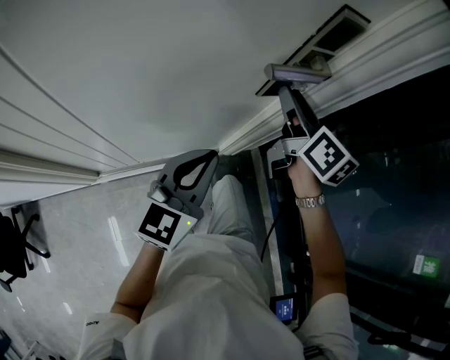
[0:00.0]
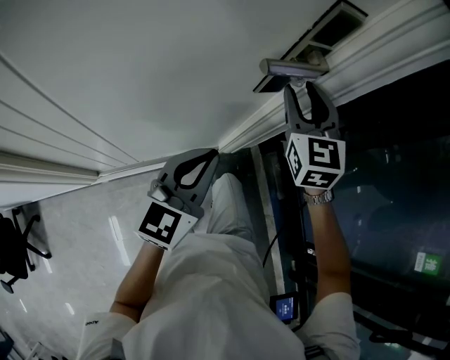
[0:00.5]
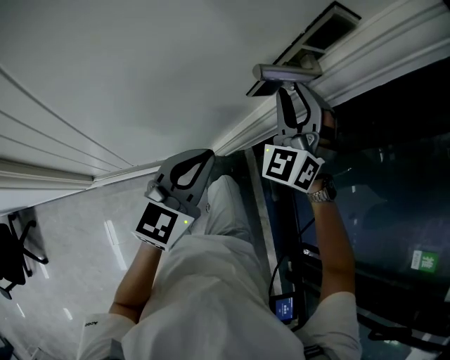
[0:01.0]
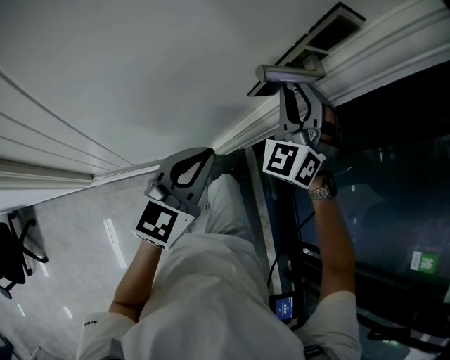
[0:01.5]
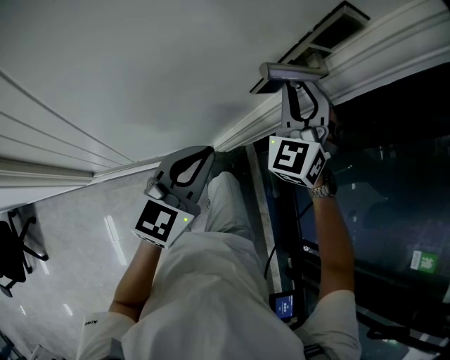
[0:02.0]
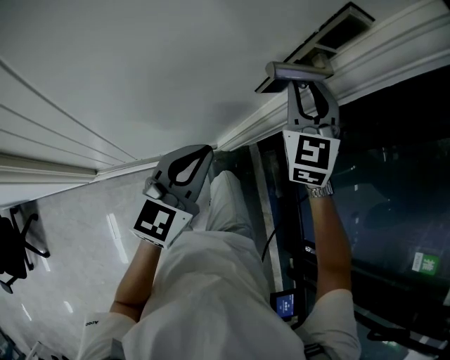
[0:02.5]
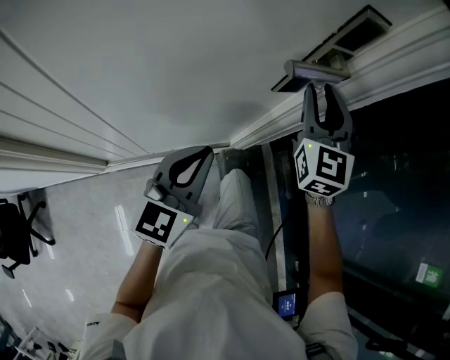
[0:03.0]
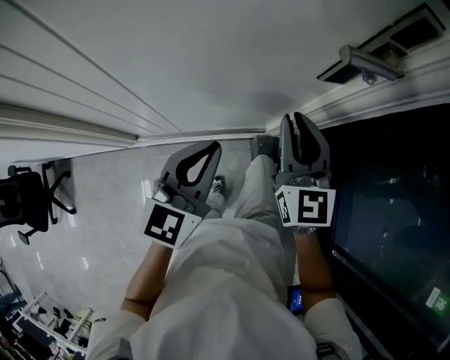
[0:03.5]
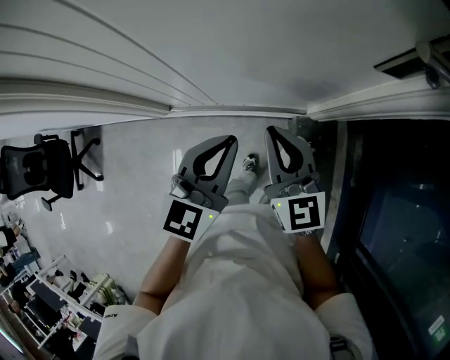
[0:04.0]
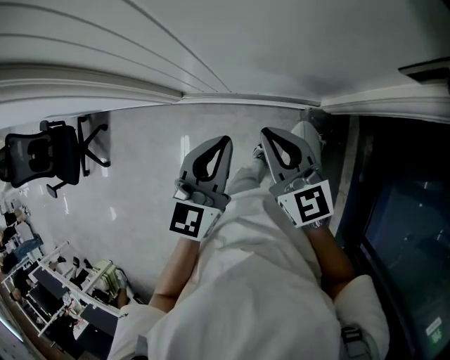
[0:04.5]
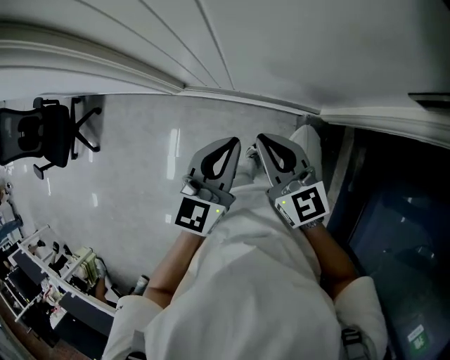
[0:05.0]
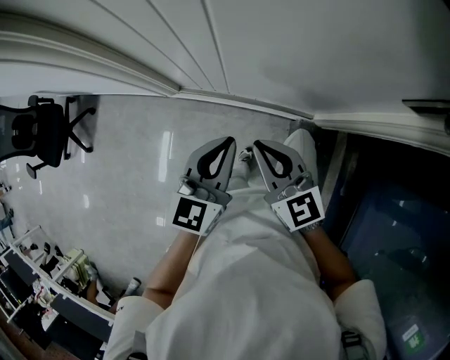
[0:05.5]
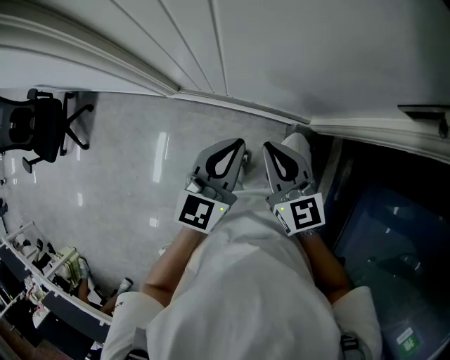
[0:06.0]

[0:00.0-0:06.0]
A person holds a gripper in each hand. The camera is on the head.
0:00.0 to 0:02.0: The right gripper rolls counterclockwise, seen from behind, by about 90 degrees.
0:02.0 to 0:04.0: The left gripper changes place by approximately 15 cm, and swivels roughly 20 degrees; the right gripper shifts by approximately 30 cm, rolls clockwise, seen from behind, by roughly 60 degrees, and closes.
0:04.0 to 0:06.0: Both grippers move to the left, roughly 10 cm. The right gripper rotates approximately 20 degrees.

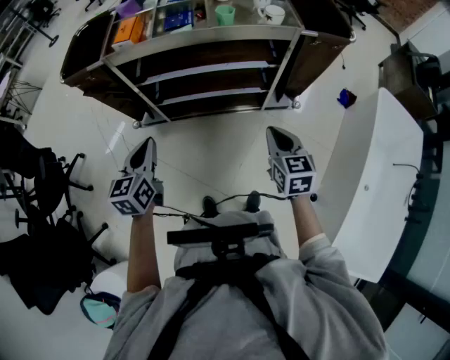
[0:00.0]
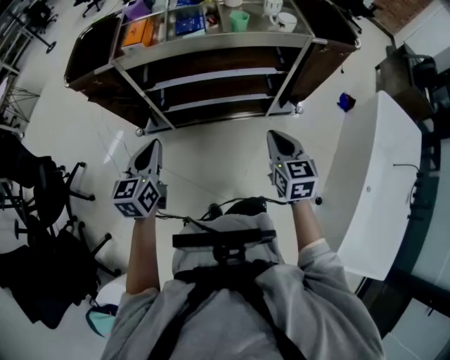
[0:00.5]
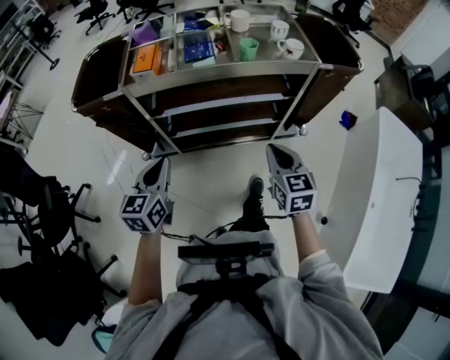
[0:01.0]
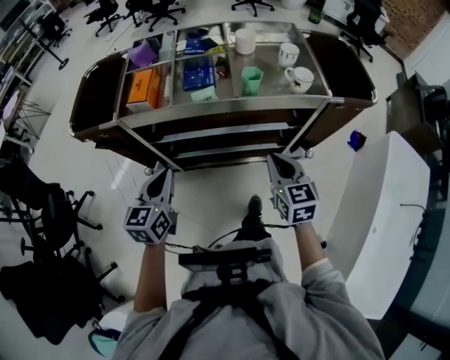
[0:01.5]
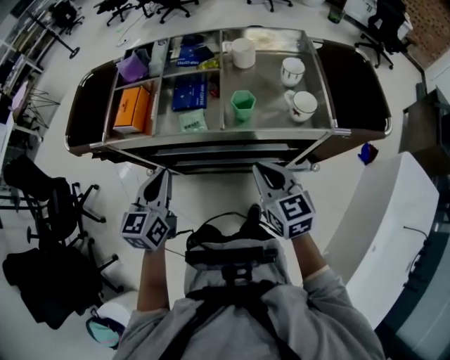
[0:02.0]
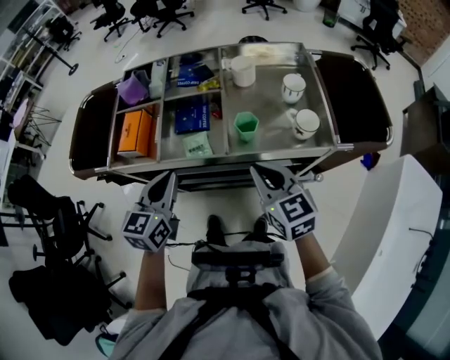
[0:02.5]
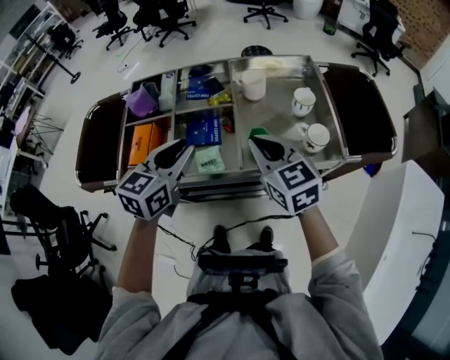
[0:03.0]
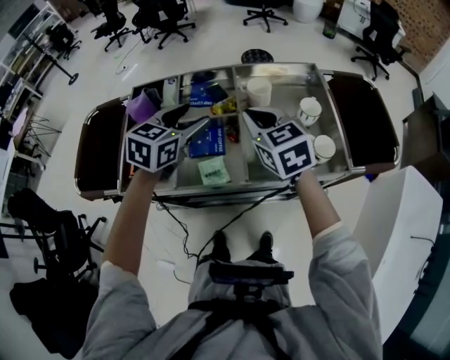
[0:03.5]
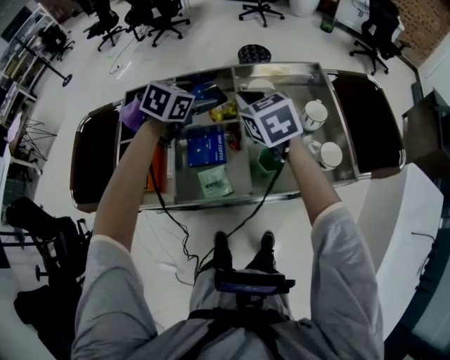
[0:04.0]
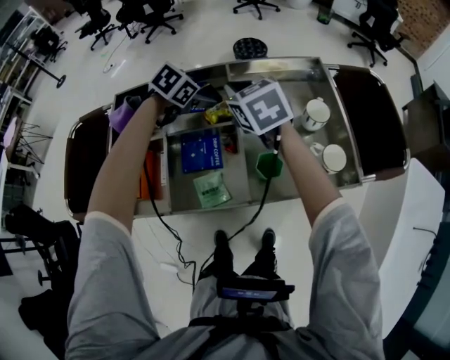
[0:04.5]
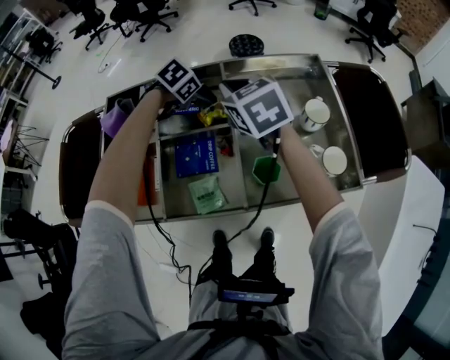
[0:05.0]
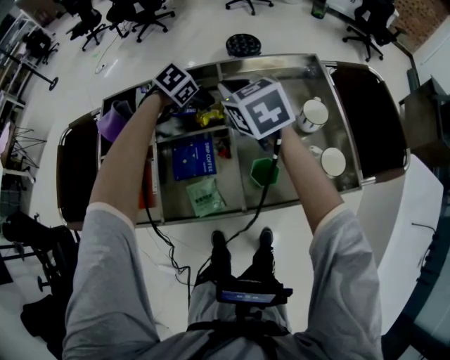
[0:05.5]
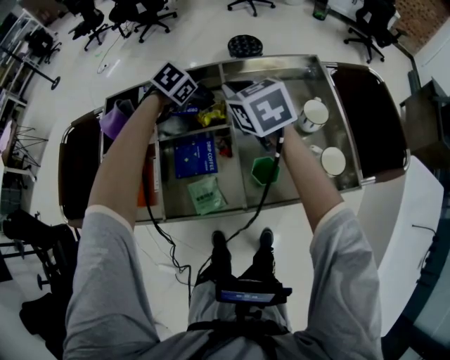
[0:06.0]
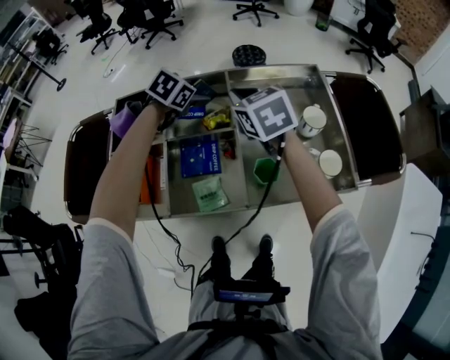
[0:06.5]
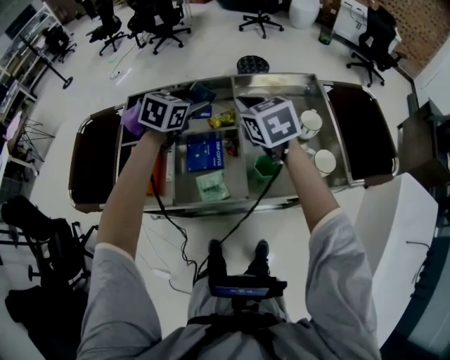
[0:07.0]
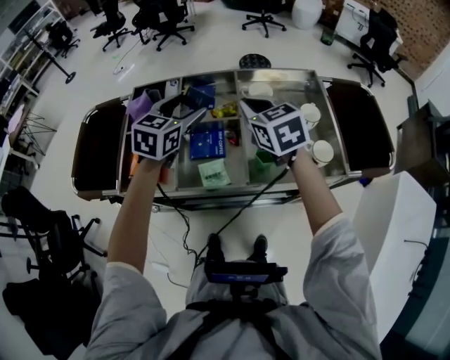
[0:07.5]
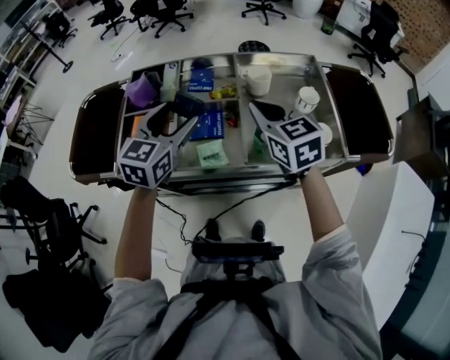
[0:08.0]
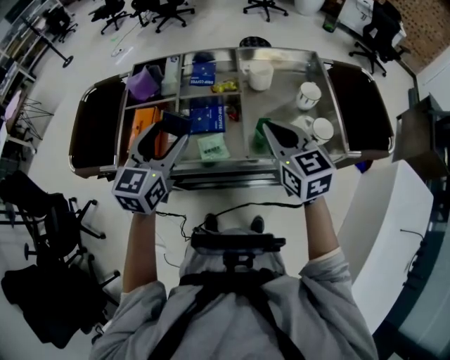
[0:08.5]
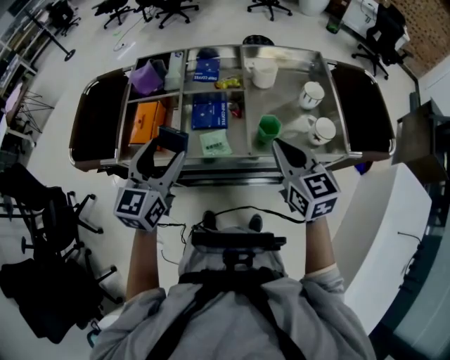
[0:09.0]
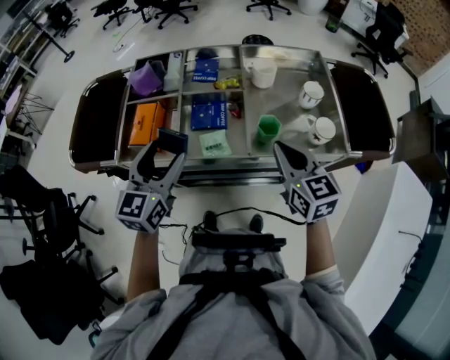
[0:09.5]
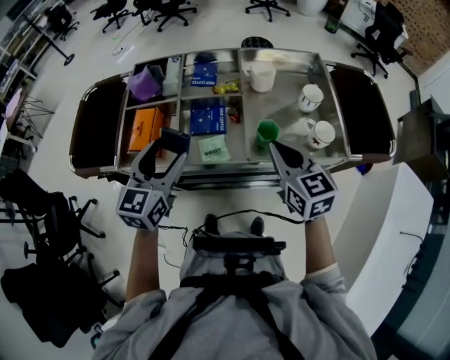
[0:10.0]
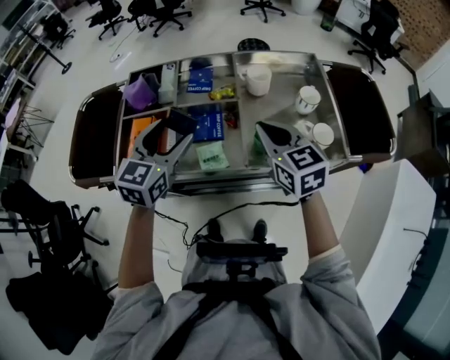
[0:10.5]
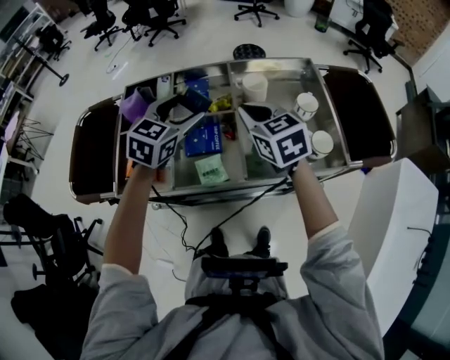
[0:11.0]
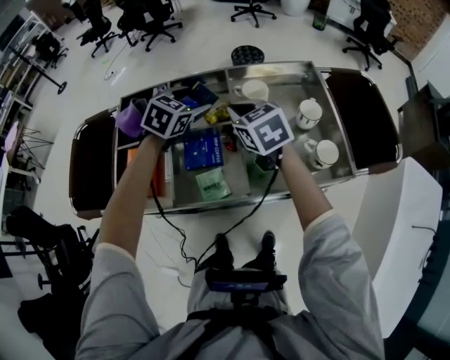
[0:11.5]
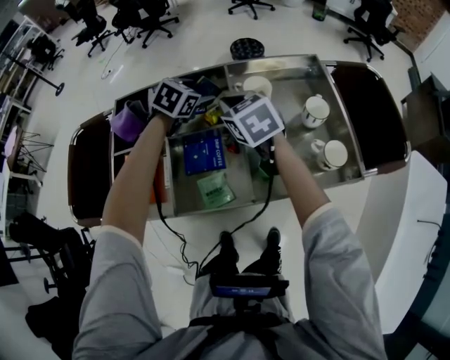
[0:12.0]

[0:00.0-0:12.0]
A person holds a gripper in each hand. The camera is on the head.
0:00.0 to 0:02.0: Both grippers move forward, about 30 cm.
0:02.0 to 0:04.0: The grippers both shift forward by roughly 35 cm. The left gripper turns by approximately 40 degrees, and opens up.
0:04.0 to 0:06.0: The right gripper is displaced forward by roughly 5 cm. The left gripper heads downward and forward, covering approximately 15 cm, and rotates about 20 degrees.
0:06.0 to 0:08.0: The right gripper is displaced backward by about 20 cm. The left gripper travels backward and upward by roughly 30 cm, and tilts its fingers roughly 50 degrees upward.
0:08.0 to 0:10.0: The right gripper heads backward and downward, covering about 10 cm; the left gripper shifts some 10 cm backward.
0:10.0 to 0:12.0: Both grippers move forward, some 30 cm. The left gripper tilts its fingers some 30 degrees downward.

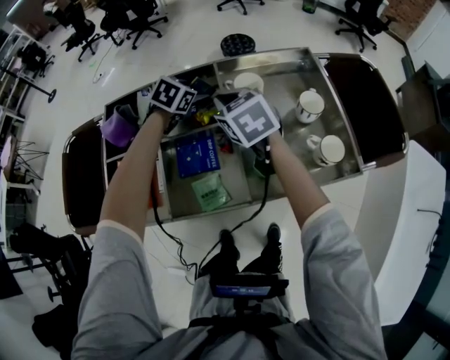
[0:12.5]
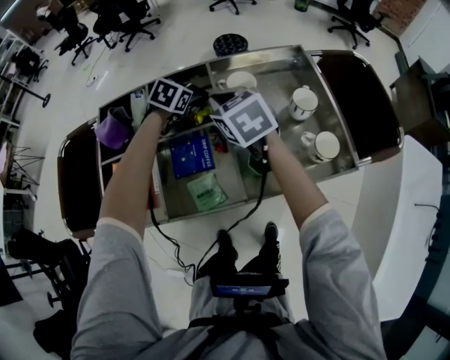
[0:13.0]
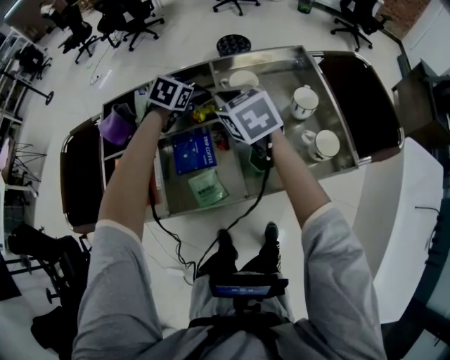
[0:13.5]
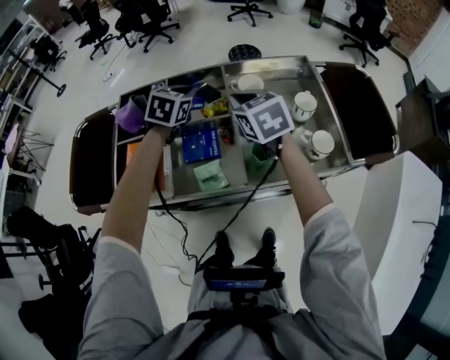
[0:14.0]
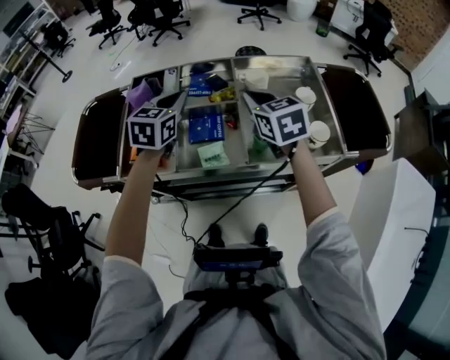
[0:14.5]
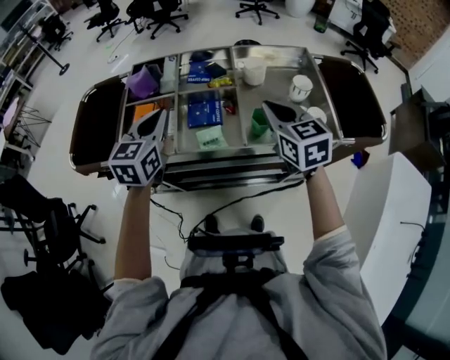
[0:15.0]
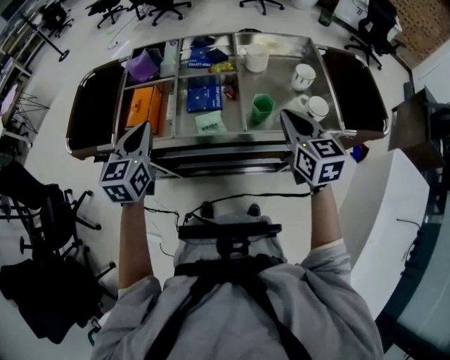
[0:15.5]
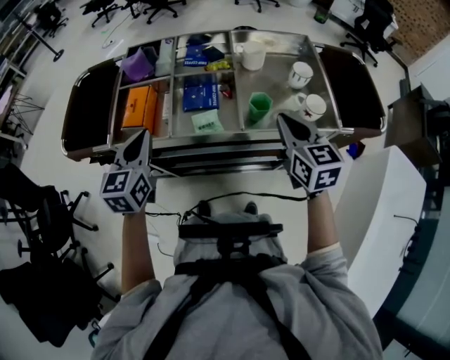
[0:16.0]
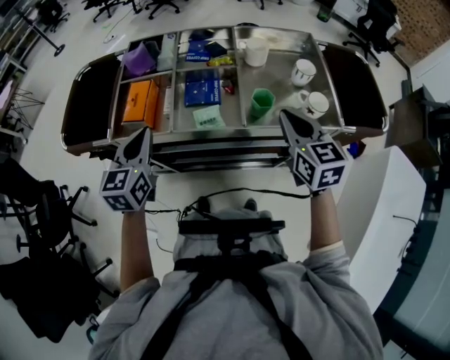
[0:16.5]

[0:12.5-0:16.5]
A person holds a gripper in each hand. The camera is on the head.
0:12.5 to 0:14.5: The left gripper heads backward and upward, covering about 25 cm, swivels some 30 degrees, and closes, while the right gripper goes roughly 15 cm backward and upward.
0:14.5 to 0:16.5: The left gripper travels backward and to the left by approximately 20 cm; the right gripper travels backward by approximately 15 cm.

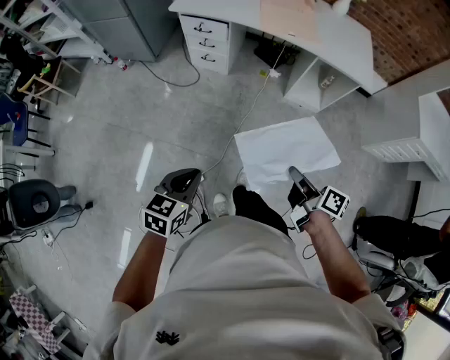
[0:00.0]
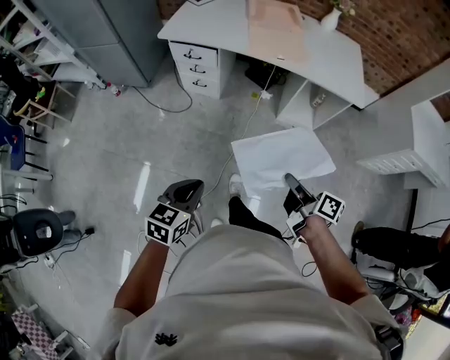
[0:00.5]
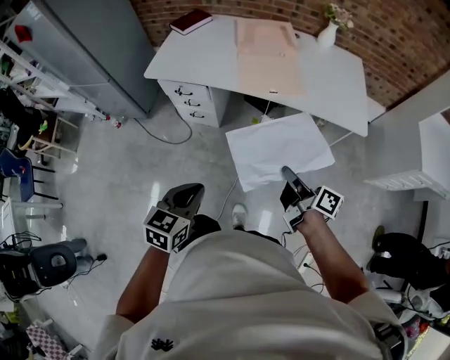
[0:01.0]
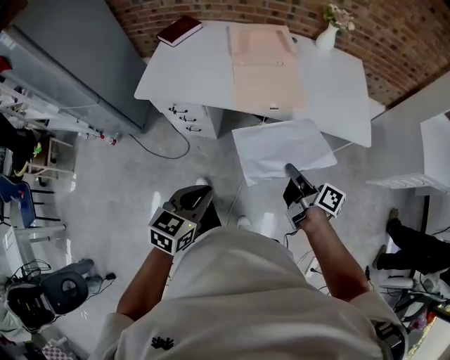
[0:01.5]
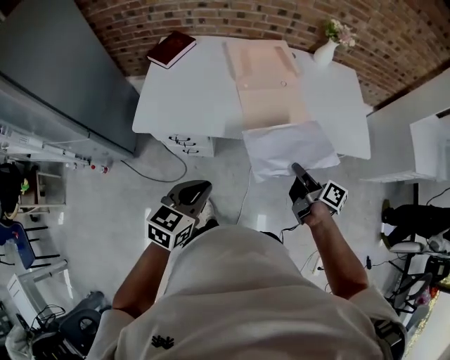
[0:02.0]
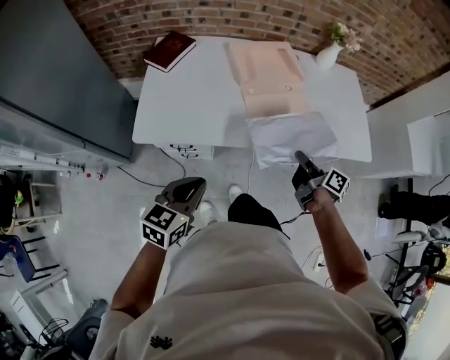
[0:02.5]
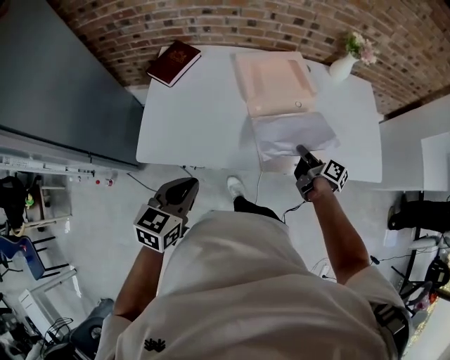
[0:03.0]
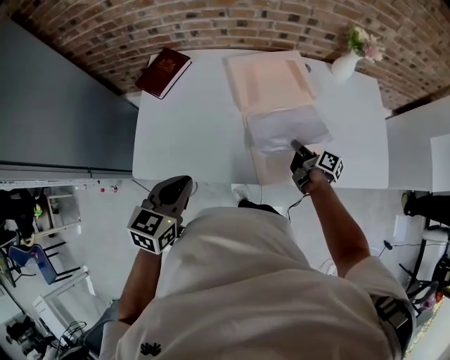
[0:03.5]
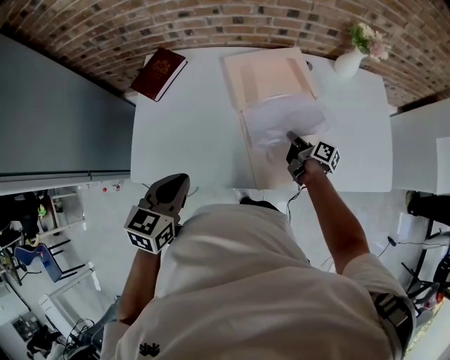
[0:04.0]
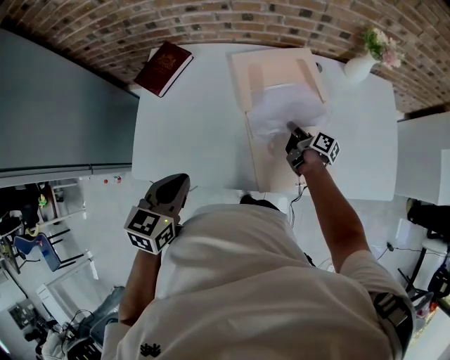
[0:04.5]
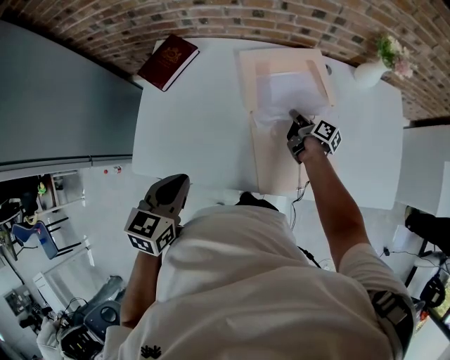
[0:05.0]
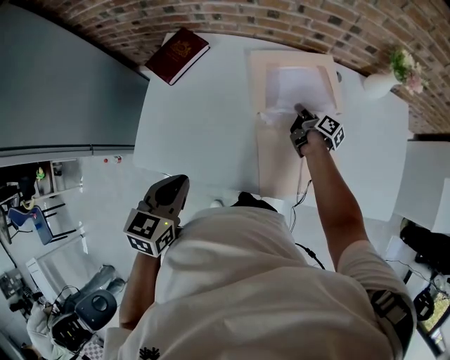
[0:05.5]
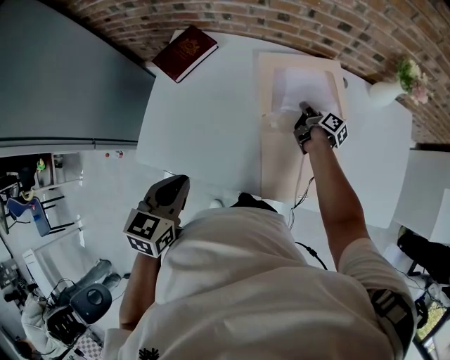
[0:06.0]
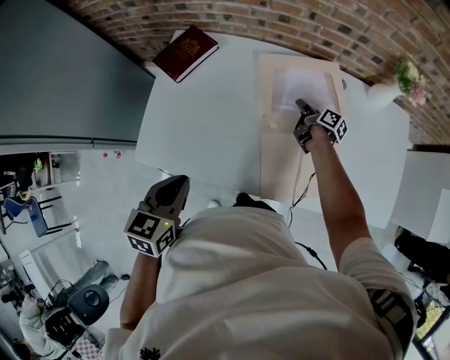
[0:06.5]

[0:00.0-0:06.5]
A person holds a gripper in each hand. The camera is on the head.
0:00.0 to 0:02.0: Both grippers are carried forward, approximately 60 cm. The left gripper rotates roughly 20 degrees. The right gripper changes its angle by roughly 20 degrees.
0:02.0 to 0:04.5: The two grippers go some 35 cm forward.
0:04.5 to 0:06.5: The right gripper shifts approximately 15 cm forward, and opens up.
